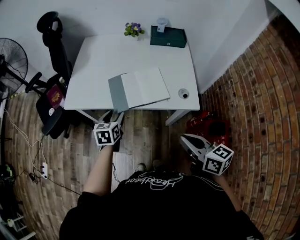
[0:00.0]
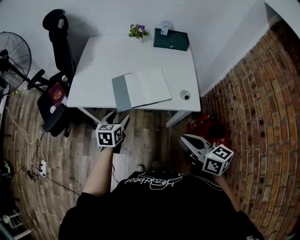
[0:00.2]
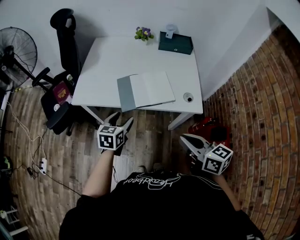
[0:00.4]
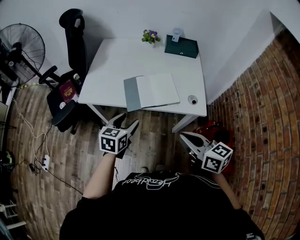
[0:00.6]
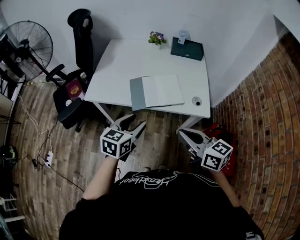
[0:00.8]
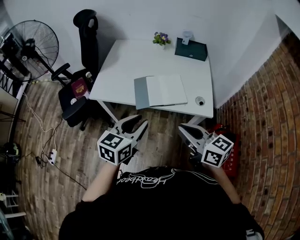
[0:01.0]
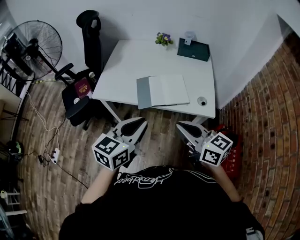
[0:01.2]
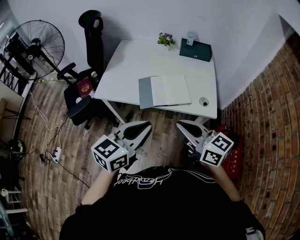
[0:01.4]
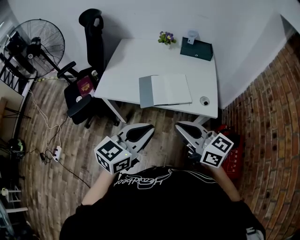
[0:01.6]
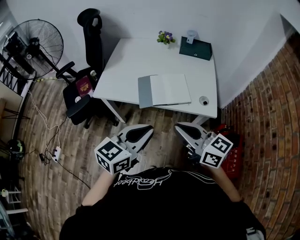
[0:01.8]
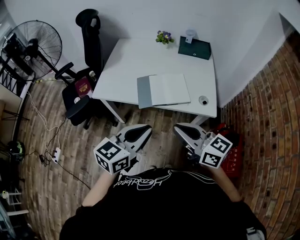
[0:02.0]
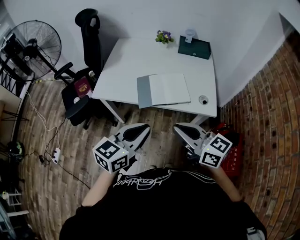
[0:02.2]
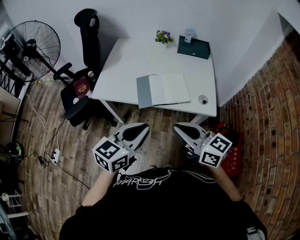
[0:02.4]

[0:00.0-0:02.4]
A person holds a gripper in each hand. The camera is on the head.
0:00.0 to 0:01.2: The right gripper heads to the left and upward, covering roughly 10 cm, and swivels about 20 degrees, while the left gripper is displaced upward and backward by about 25 cm, turns by about 30 degrees, and closes its fingers.
0:01.2 to 0:02.4: The grippers stay close to where they were, moving slightly.

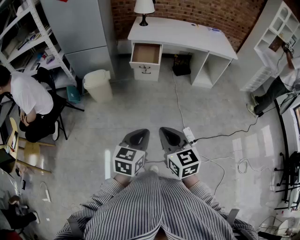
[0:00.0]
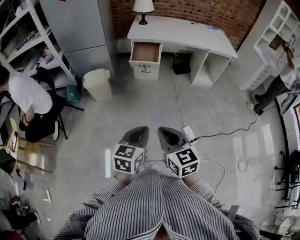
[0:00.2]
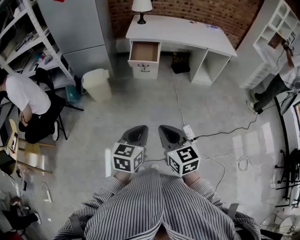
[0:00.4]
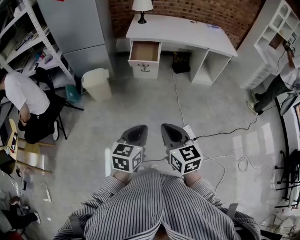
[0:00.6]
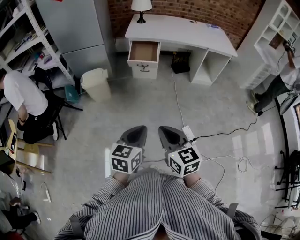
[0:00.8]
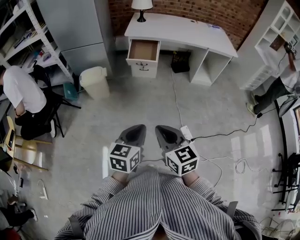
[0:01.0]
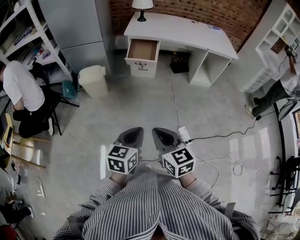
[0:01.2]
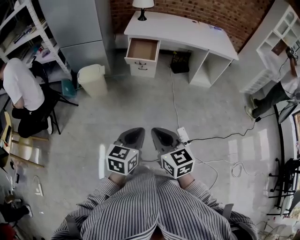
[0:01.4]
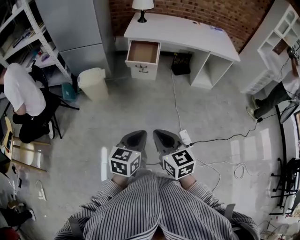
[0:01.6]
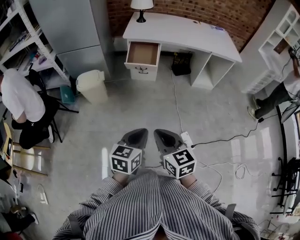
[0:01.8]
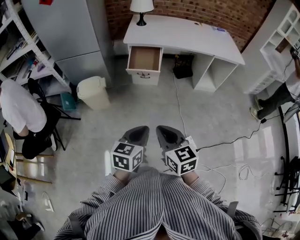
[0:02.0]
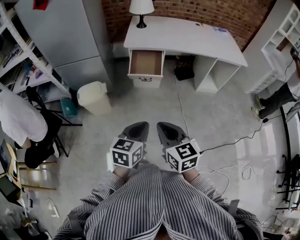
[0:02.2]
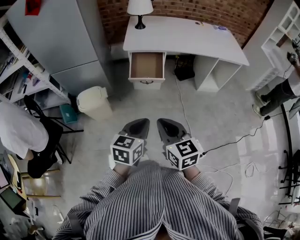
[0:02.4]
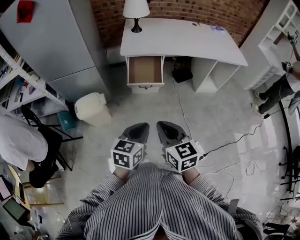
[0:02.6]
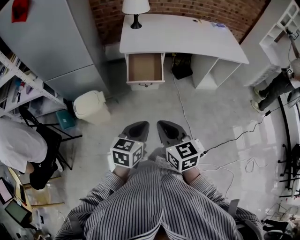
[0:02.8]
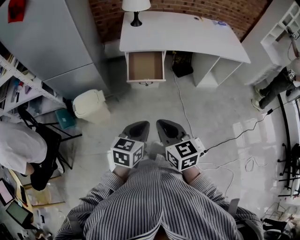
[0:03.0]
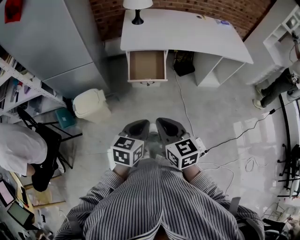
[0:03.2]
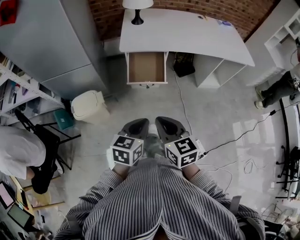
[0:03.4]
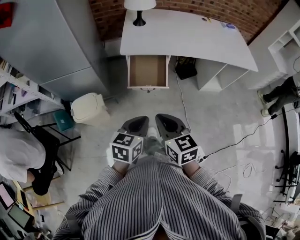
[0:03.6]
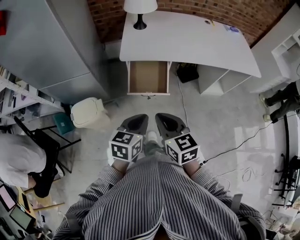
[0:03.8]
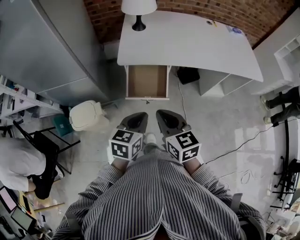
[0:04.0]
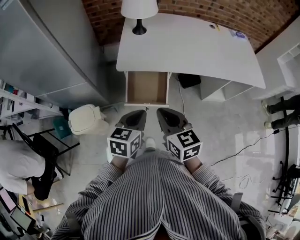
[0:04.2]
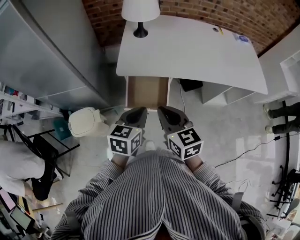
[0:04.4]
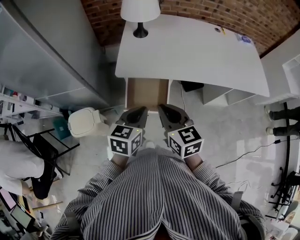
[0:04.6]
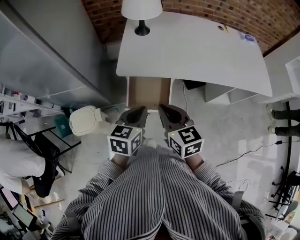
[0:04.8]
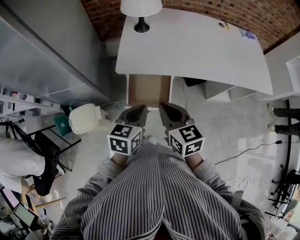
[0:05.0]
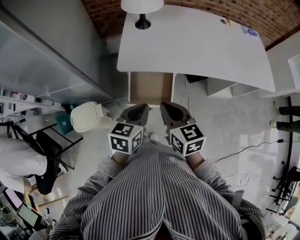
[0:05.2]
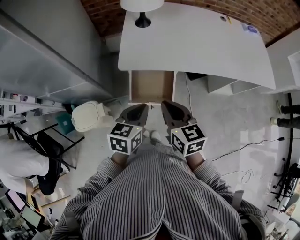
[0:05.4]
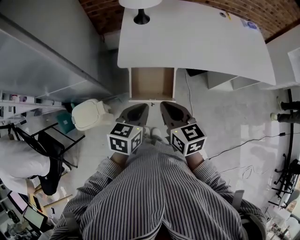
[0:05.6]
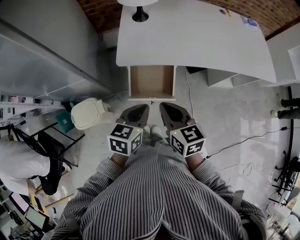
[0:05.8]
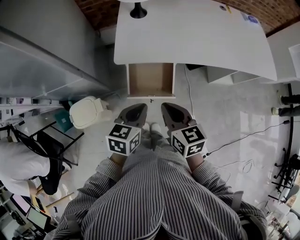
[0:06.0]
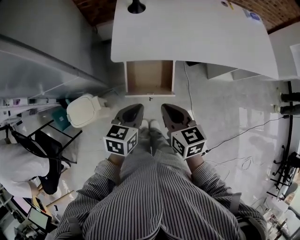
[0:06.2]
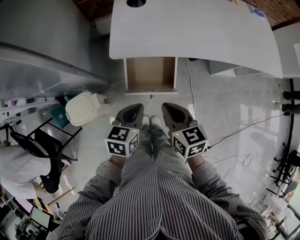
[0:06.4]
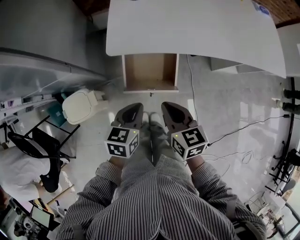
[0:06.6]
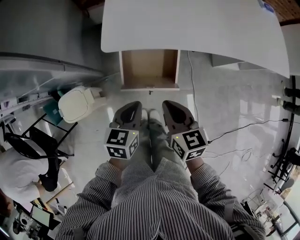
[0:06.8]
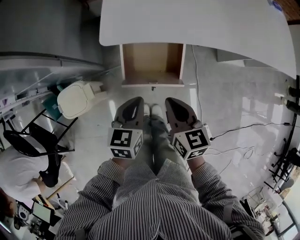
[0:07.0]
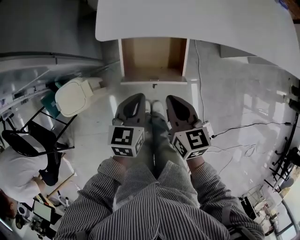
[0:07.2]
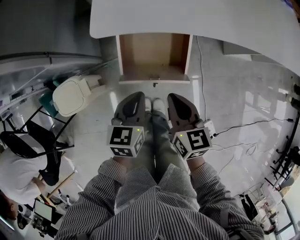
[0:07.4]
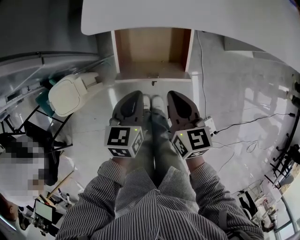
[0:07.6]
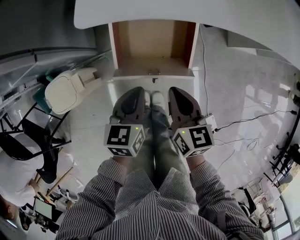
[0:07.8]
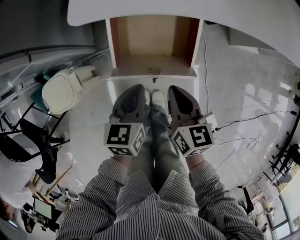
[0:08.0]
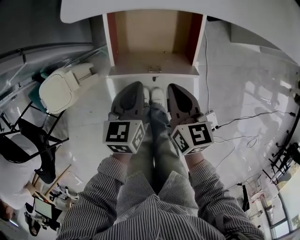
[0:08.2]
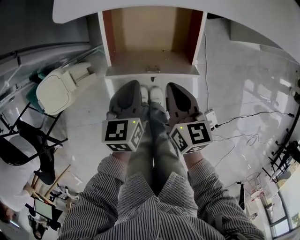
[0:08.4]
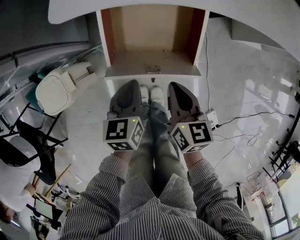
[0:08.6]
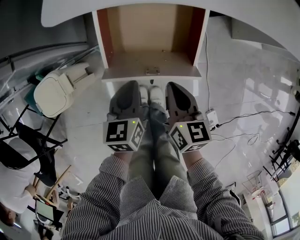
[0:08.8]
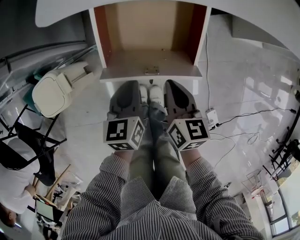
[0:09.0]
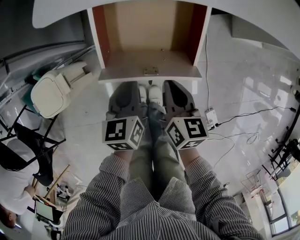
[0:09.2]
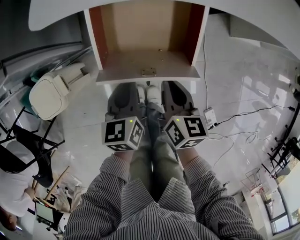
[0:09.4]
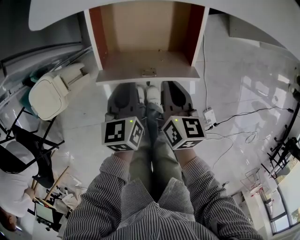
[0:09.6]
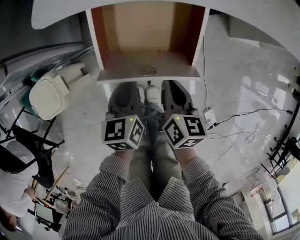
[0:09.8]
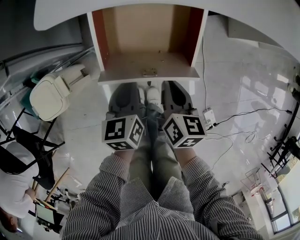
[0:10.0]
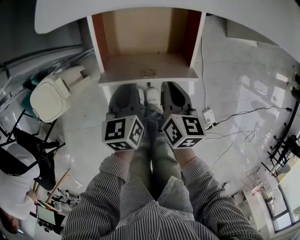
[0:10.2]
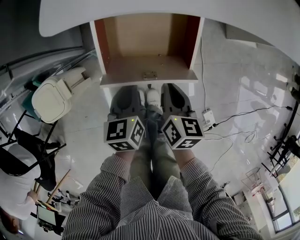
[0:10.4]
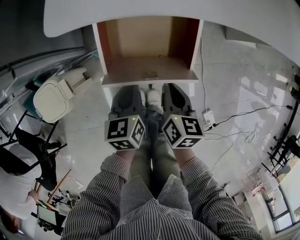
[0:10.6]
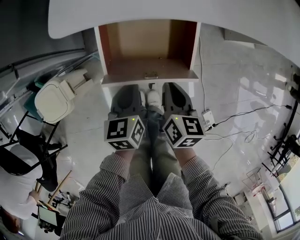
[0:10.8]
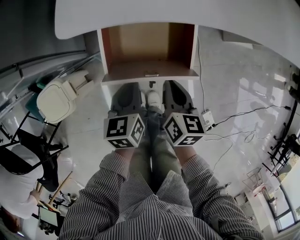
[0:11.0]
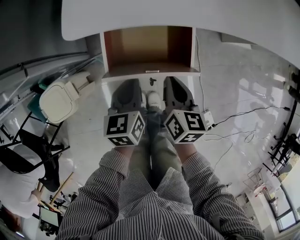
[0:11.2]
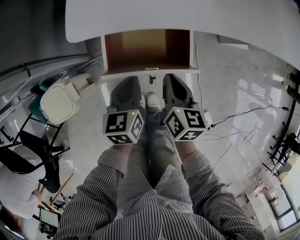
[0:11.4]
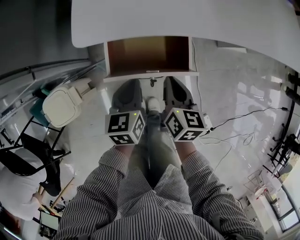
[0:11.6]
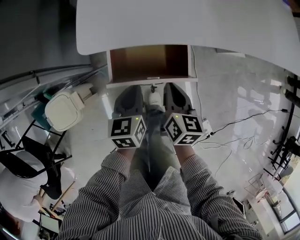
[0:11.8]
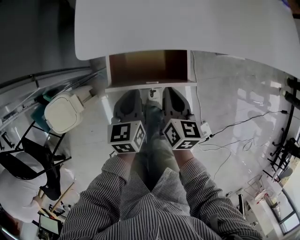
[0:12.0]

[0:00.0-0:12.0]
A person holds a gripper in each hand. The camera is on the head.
0:00.0 to 0:01.6: The grippers both shift forward by some 5 cm.
0:01.6 to 0:03.0: The left gripper goes approximately 35 cm forward and to the left, while the right gripper moves forward, approximately 35 cm.
0:03.0 to 0:04.4: The two grippers go approximately 35 cm forward.
0:04.4 to 0:06.0: The right gripper goes some 5 cm downward.
0:06.0 to 0:07.6: The two grippers go roughly 20 cm downward.
0:07.6 to 0:09.0: Both grippers travel together downward, some 10 cm.
0:09.0 to 0:10.4: The grippers stay close to where they were, moving slightly.
0:10.4 to 0:12.0: The right gripper heads upward and forward, covering some 10 cm. The left gripper moves upward, roughly 10 cm.

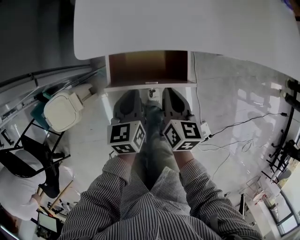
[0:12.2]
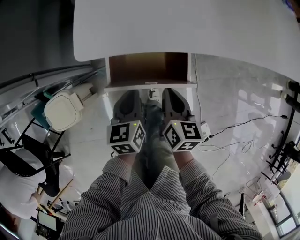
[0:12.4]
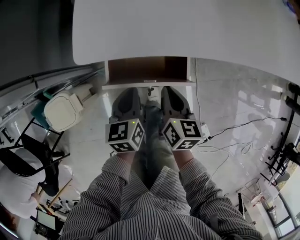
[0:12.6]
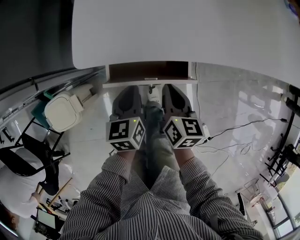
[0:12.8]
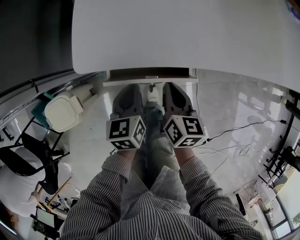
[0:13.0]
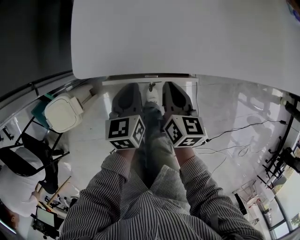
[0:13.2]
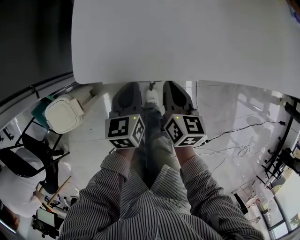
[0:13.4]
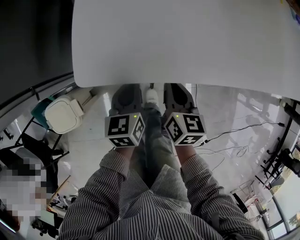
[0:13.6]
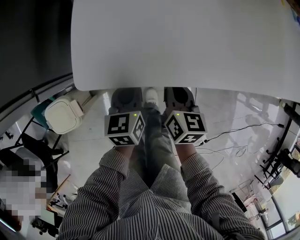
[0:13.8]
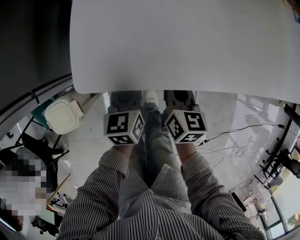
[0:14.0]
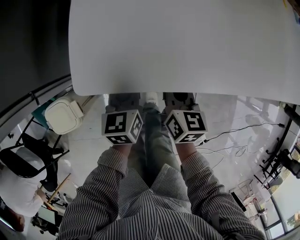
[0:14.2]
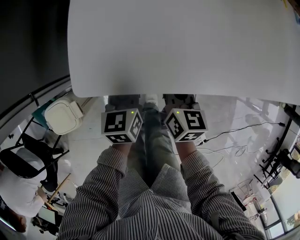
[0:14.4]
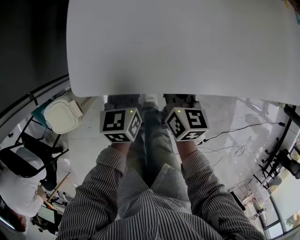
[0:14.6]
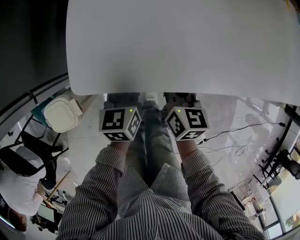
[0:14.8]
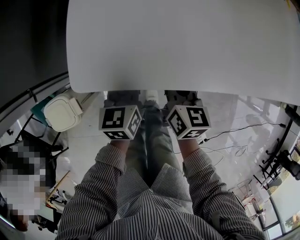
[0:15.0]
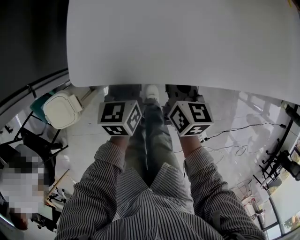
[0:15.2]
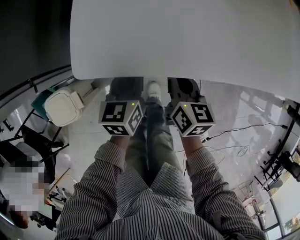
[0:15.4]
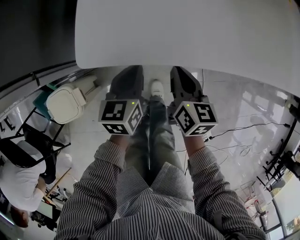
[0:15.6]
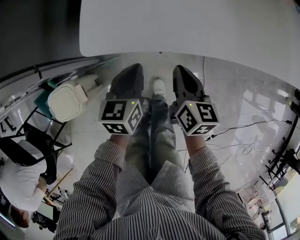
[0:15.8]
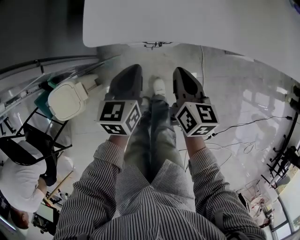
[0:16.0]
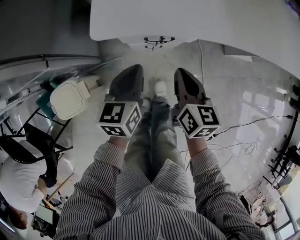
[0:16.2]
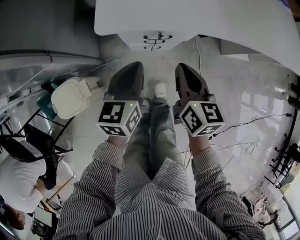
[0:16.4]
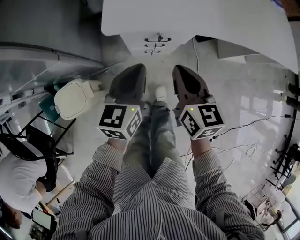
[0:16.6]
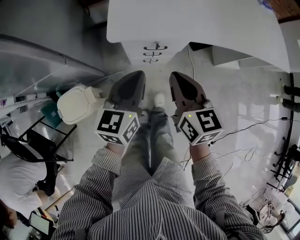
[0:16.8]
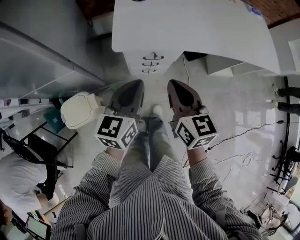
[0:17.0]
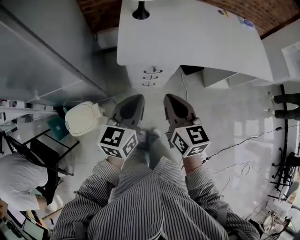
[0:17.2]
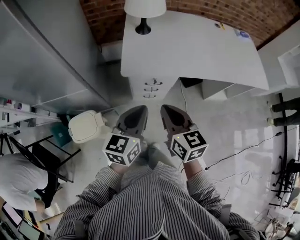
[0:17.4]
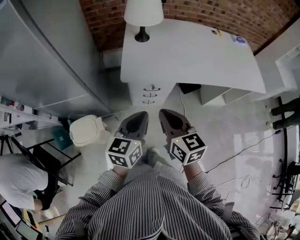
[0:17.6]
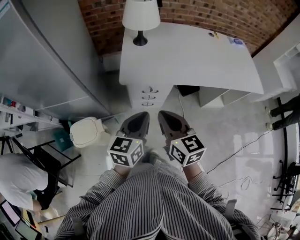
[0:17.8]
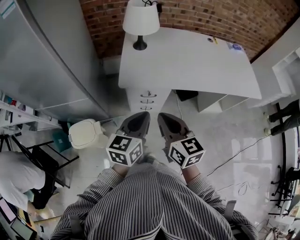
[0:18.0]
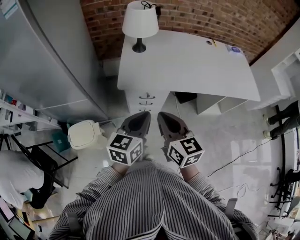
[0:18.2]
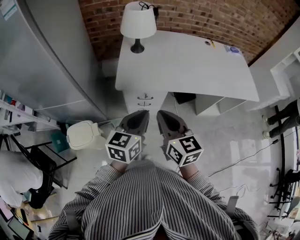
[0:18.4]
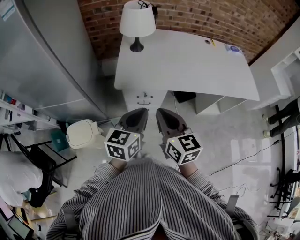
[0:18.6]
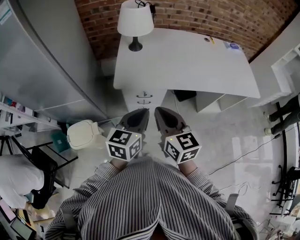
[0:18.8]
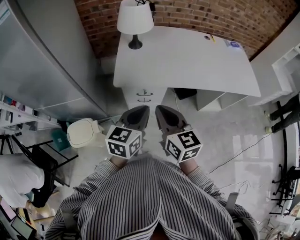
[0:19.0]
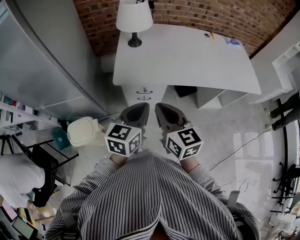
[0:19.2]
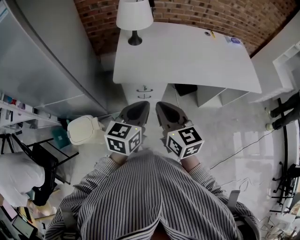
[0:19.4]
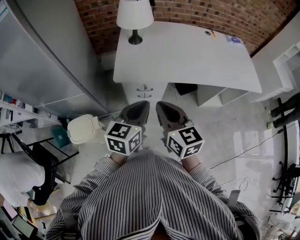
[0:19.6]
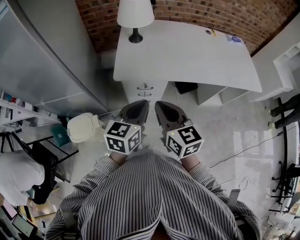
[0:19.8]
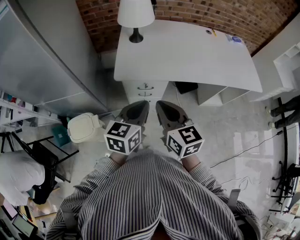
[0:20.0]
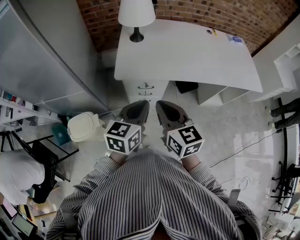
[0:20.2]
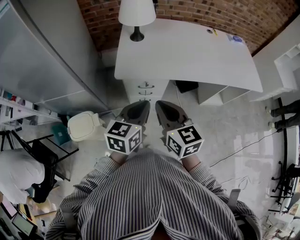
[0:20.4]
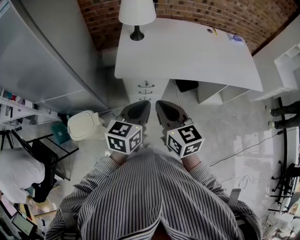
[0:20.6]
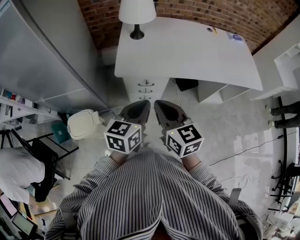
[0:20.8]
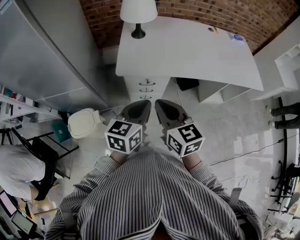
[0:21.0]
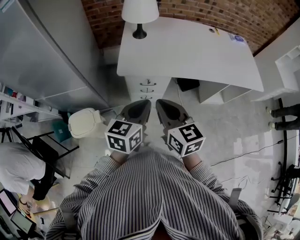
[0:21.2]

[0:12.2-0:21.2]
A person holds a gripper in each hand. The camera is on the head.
0:12.2 to 0:13.8: Both grippers move forward, some 10 cm.
0:13.8 to 0:15.2: The grippers stay close to where they were, moving slightly.
0:15.2 to 0:16.6: Both grippers move upward and backward, some 20 cm.
0:16.6 to 0:18.2: Both grippers move upward and backward, approximately 25 cm.
0:18.2 to 0:21.2: There are only small adjustments of the grippers.
